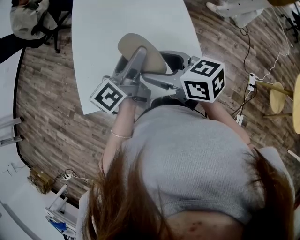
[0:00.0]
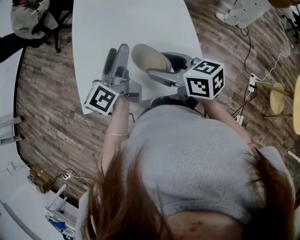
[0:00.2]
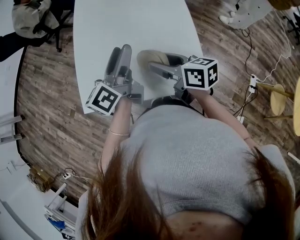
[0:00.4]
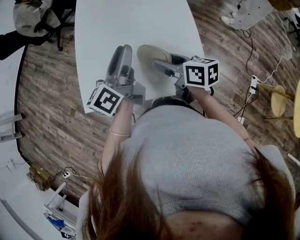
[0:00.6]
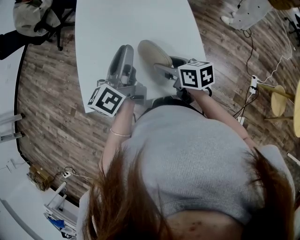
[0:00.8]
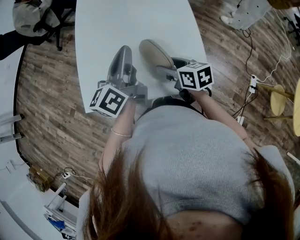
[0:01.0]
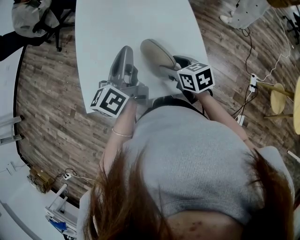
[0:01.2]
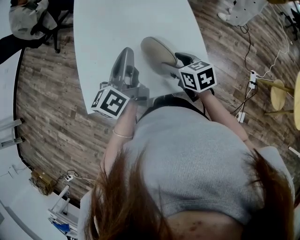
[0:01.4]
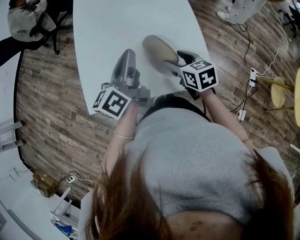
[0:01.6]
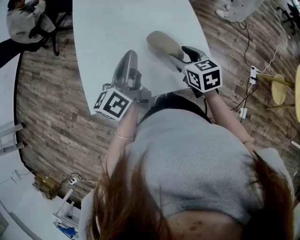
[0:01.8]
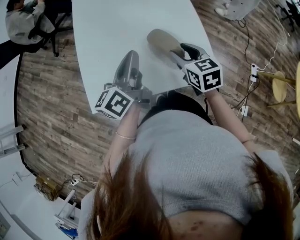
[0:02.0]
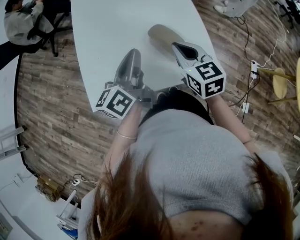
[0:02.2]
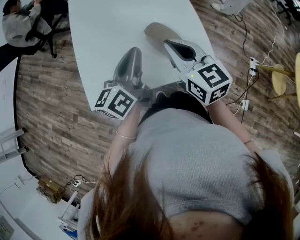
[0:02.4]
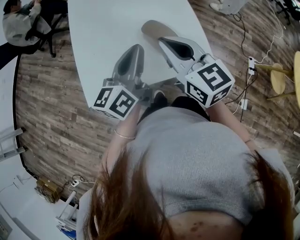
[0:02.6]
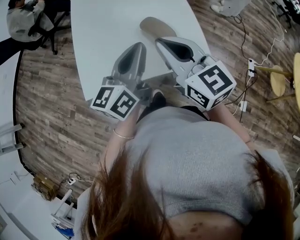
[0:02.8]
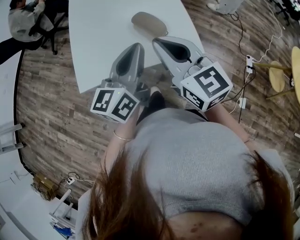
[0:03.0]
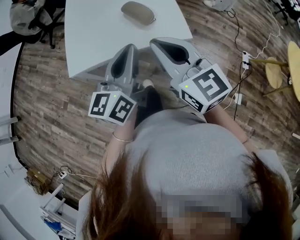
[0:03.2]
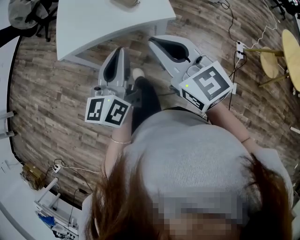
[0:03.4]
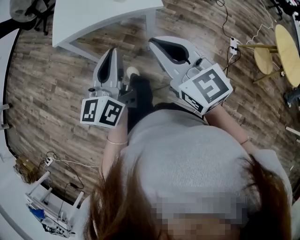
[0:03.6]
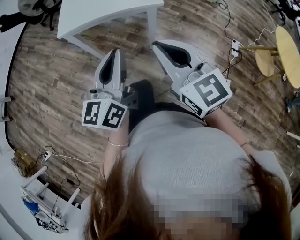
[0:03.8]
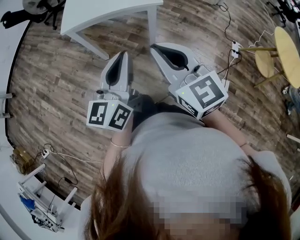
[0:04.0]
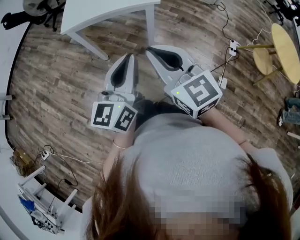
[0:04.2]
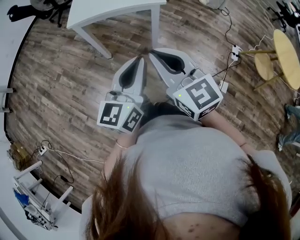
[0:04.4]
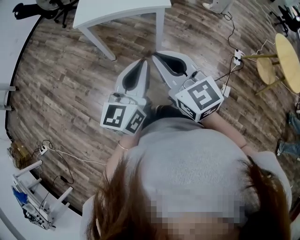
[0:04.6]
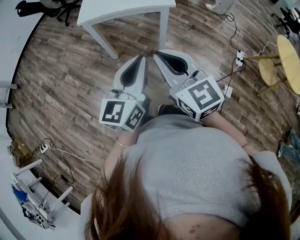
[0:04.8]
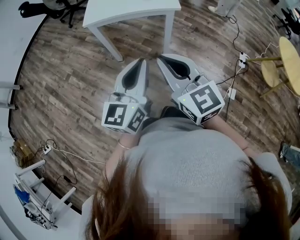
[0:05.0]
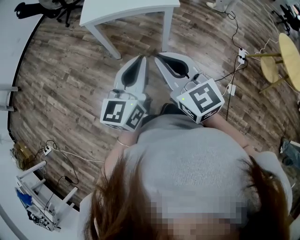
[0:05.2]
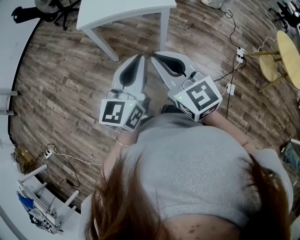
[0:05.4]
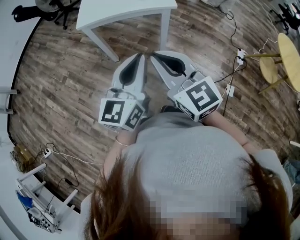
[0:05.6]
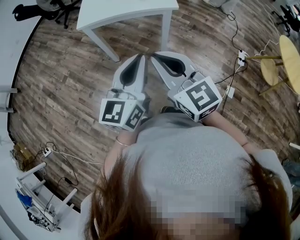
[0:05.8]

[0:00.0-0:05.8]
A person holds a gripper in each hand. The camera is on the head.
0:00.0 to 0:01.4: The left gripper closes, while the right gripper travels downward by approximately 15 cm, and swivels roughly 30 degrees.
0:01.4 to 0:02.8: The right gripper goes approximately 20 cm upward, points its fingers roughly 30 degrees further upward, and closes its fingers. Meanwhile the left gripper heads backward, covering approximately 10 cm.
0:02.8 to 0:04.4: Both grippers are carried backward, approximately 40 cm.
0:04.4 to 0:05.8: The right gripper shifts by about 5 cm; the left gripper ends up approximately 5 cm from where it was.

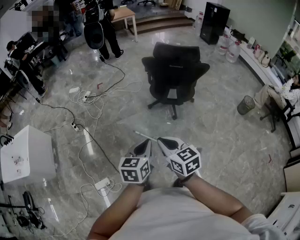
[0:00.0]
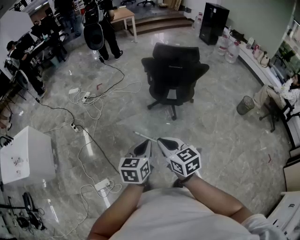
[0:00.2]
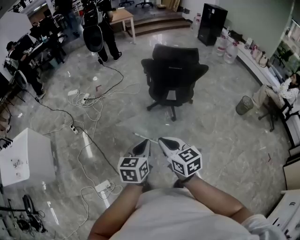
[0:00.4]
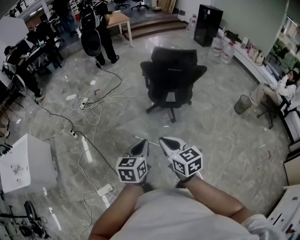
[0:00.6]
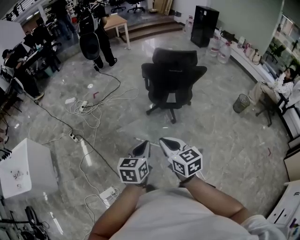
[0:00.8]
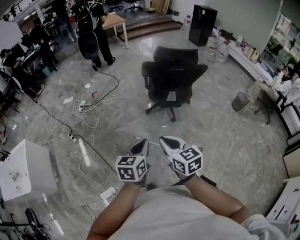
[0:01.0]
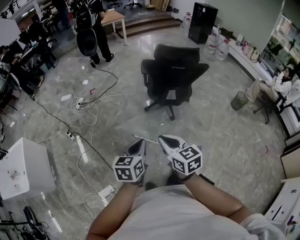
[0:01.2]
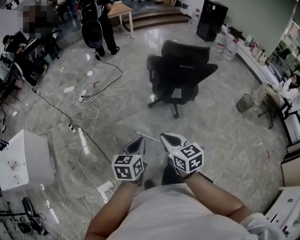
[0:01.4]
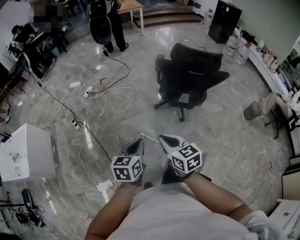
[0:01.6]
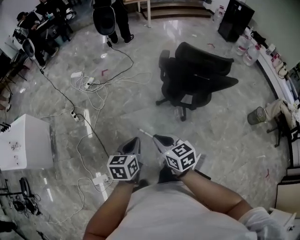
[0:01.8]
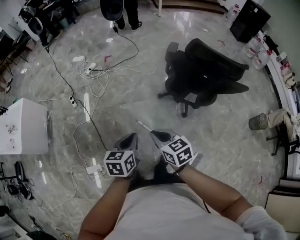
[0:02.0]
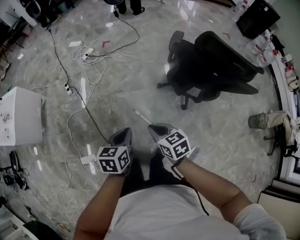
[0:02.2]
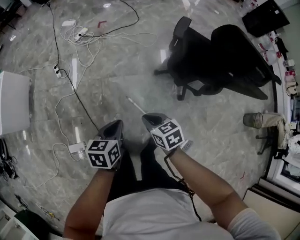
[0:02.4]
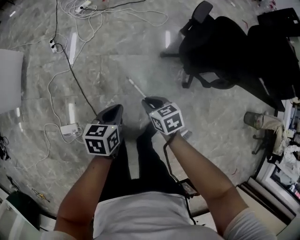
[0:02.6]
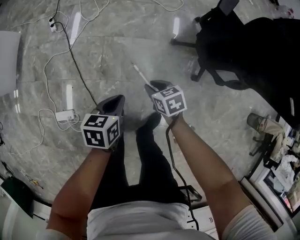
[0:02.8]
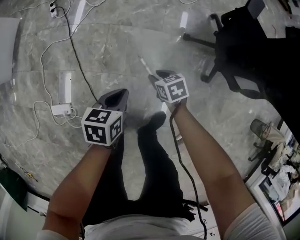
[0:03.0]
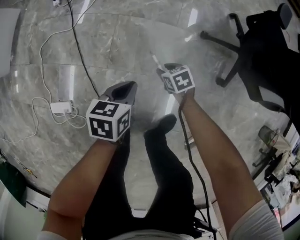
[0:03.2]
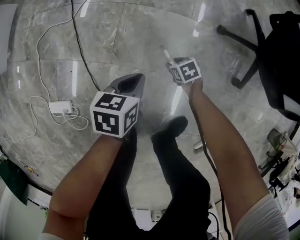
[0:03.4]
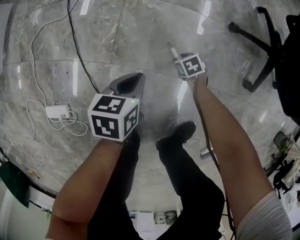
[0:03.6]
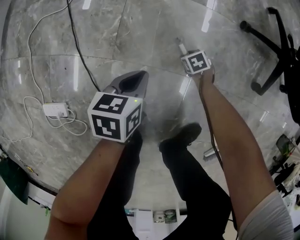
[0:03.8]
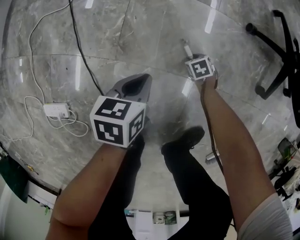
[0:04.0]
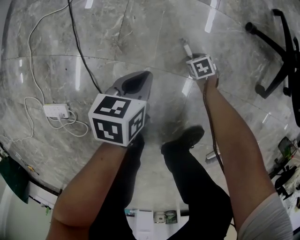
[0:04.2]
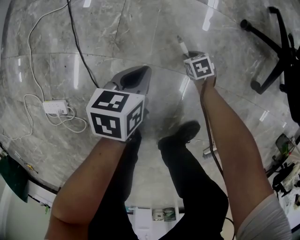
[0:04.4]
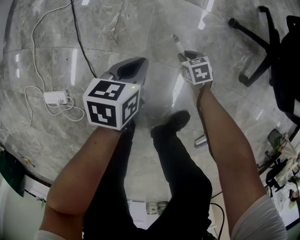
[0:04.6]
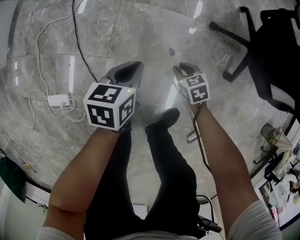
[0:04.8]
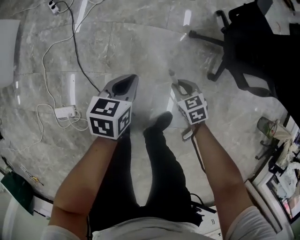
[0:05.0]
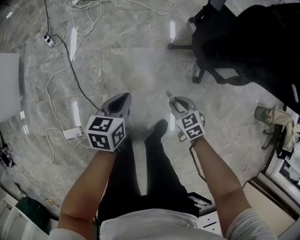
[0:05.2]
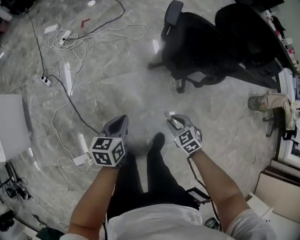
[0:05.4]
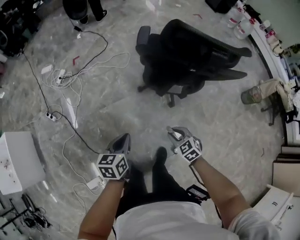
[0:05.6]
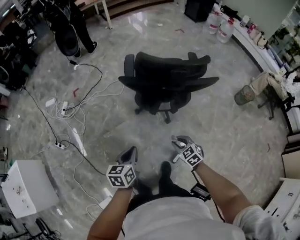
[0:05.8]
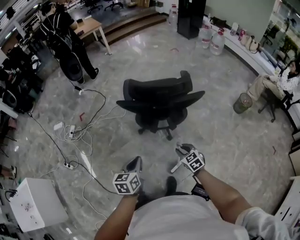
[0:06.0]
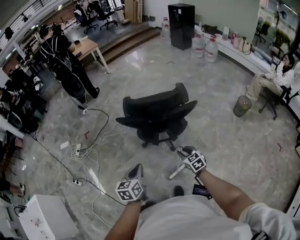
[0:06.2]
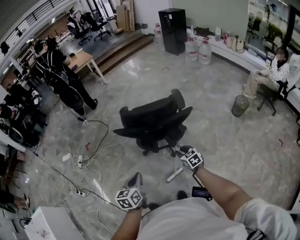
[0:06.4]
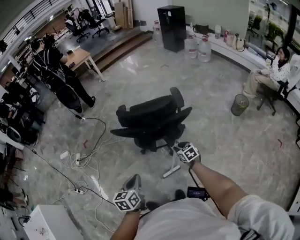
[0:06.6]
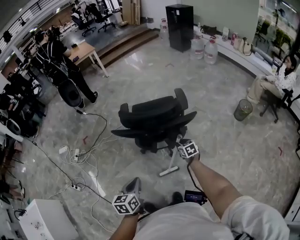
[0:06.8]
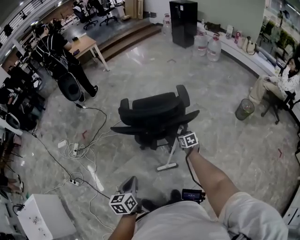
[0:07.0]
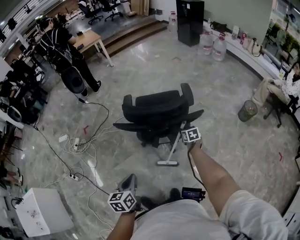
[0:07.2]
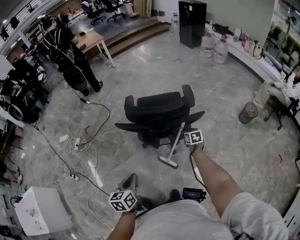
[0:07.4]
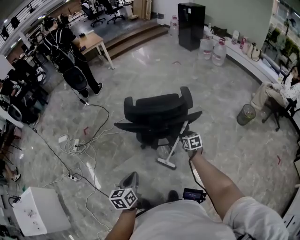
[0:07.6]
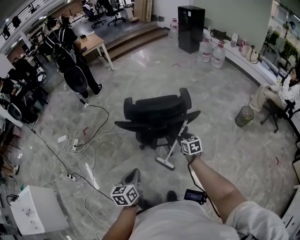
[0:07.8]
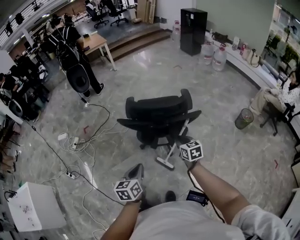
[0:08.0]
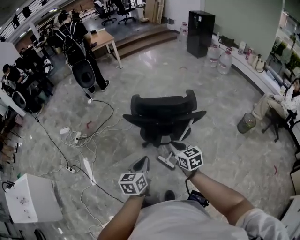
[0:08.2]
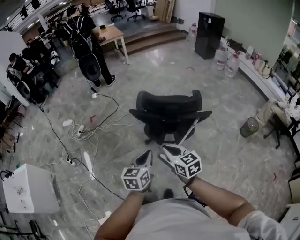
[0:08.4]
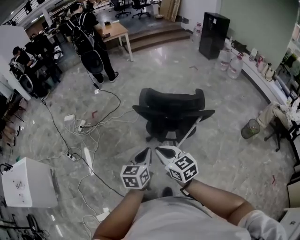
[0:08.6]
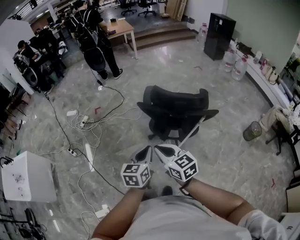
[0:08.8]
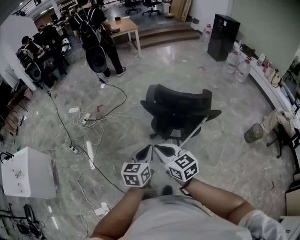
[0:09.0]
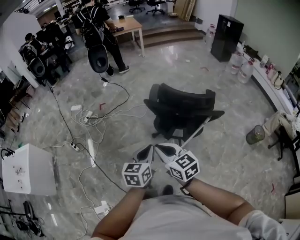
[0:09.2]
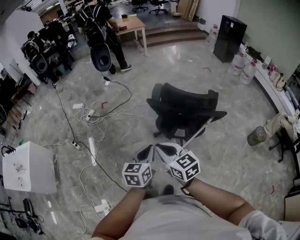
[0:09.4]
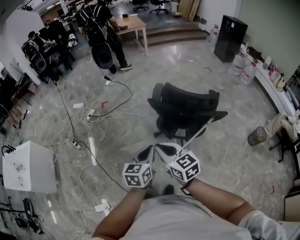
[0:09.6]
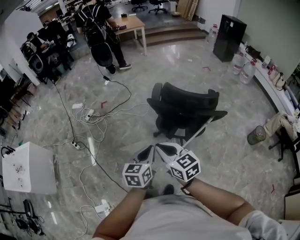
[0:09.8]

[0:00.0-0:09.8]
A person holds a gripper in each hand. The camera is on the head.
0:00.0 to 0:01.4: The two grippers go some 10 cm to the left and forward.
0:01.4 to 0:02.8: Both grippers move downward, some 50 cm. The left gripper changes its angle by some 30 degrees, while the right gripper points its fingers roughly 30 degrees further downward, and opens its fingers.
0:02.8 to 0:04.2: The grippers both shift downward by roughly 50 cm. The right gripper swivels some 30 degrees.
0:04.2 to 0:05.6: Both grippers move upward, about 70 cm. The right gripper swivels about 30 degrees, while the left gripper changes its angle by approximately 30 degrees.
0:05.6 to 0:07.0: The left gripper is displaced to the right and upward by some 25 cm; the right gripper heads to the right and forward, covering about 35 cm, and rotates around the line of its fingers by roughly 40 degrees, clockwise from behind.
0:07.0 to 0:08.4: The right gripper shifts roughly 40 cm upward, to the left and backward, and turns by approximately 30 degrees; the left gripper moves upward, approximately 5 cm.
0:08.4 to 0:09.8: The left gripper shifts roughly 10 cm to the left. Meanwhile the right gripper is displaced to the left by some 10 cm.

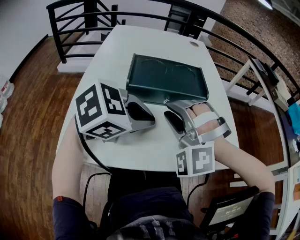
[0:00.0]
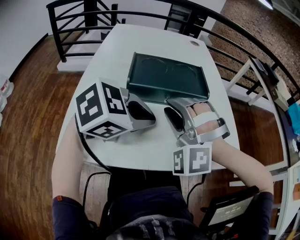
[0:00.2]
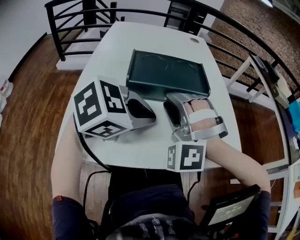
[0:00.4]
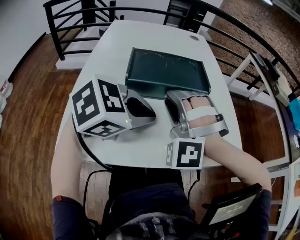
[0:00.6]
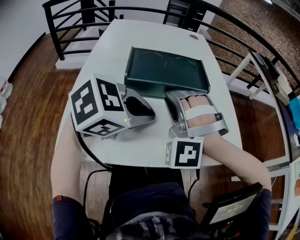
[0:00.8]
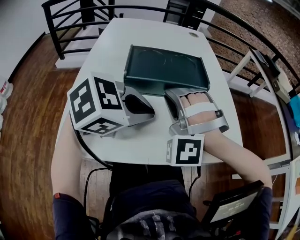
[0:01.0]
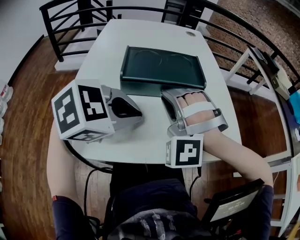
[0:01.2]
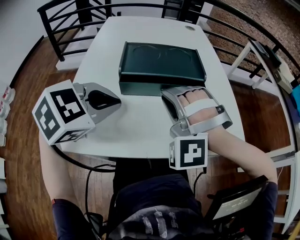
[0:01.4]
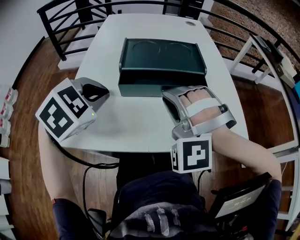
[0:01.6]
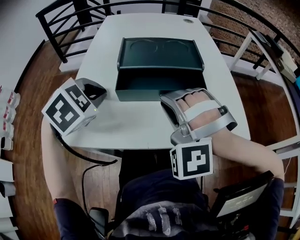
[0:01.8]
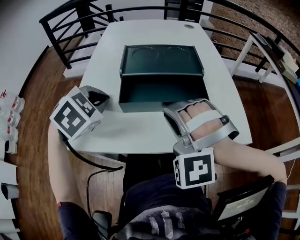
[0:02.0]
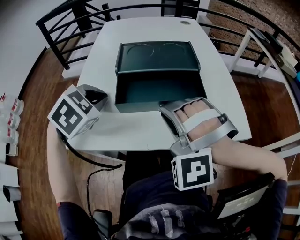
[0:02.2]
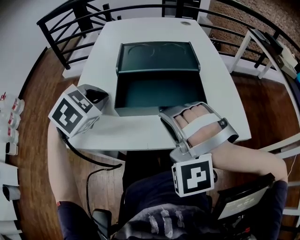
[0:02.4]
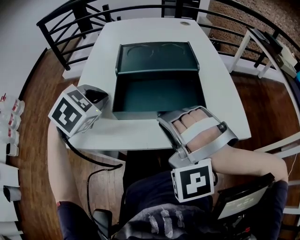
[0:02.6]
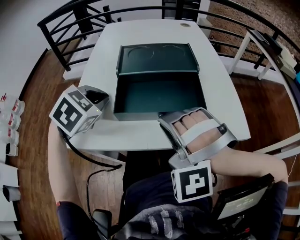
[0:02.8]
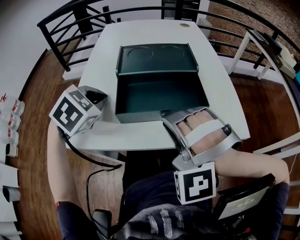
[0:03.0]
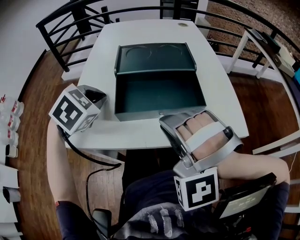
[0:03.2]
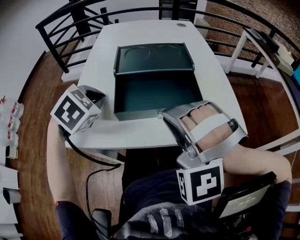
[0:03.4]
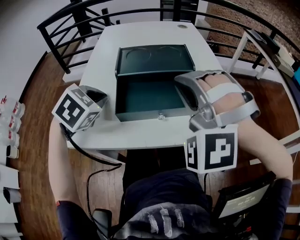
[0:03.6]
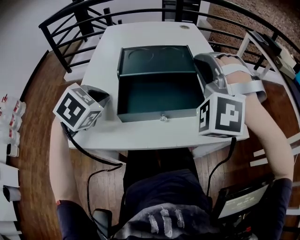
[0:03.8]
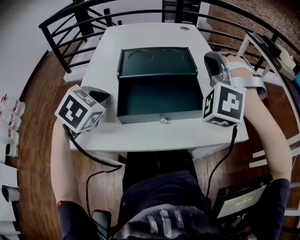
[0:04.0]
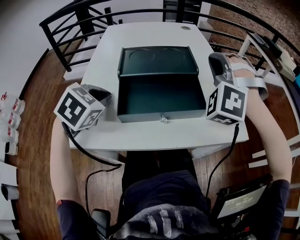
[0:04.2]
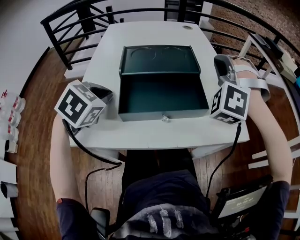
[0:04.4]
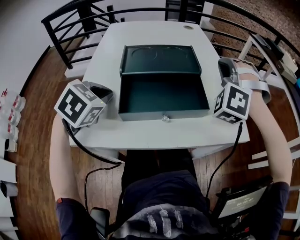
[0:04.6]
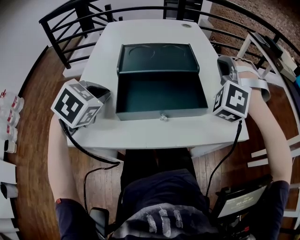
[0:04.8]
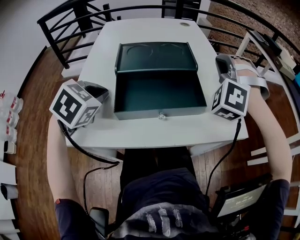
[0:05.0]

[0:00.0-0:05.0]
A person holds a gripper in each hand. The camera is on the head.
0:00.0 to 0:01.6: The left gripper shifts by about 10 cm, and changes its angle by some 40 degrees.

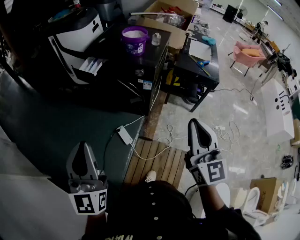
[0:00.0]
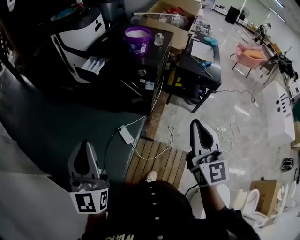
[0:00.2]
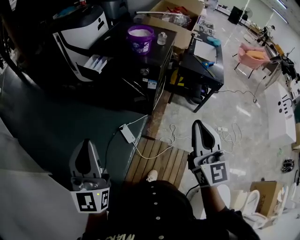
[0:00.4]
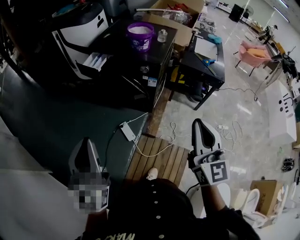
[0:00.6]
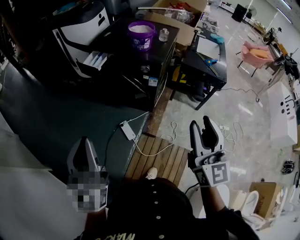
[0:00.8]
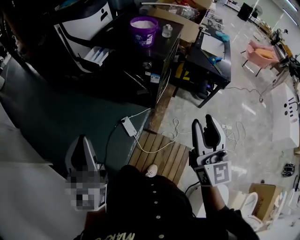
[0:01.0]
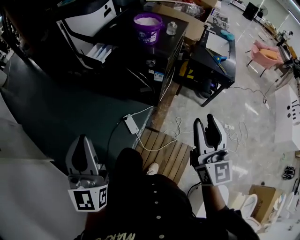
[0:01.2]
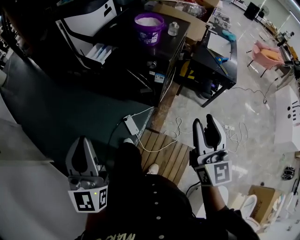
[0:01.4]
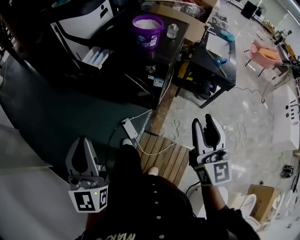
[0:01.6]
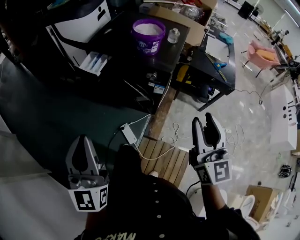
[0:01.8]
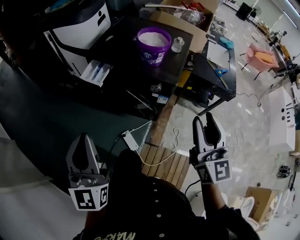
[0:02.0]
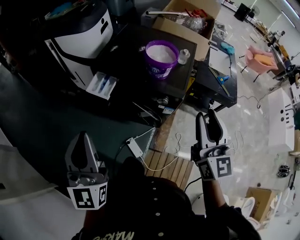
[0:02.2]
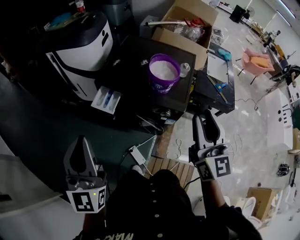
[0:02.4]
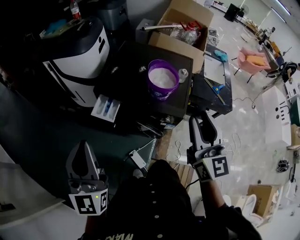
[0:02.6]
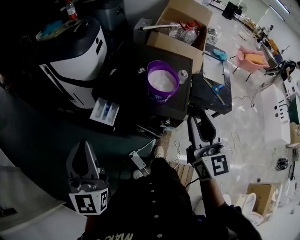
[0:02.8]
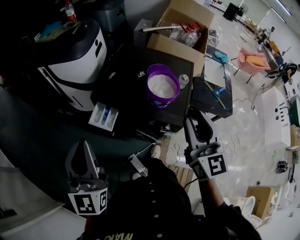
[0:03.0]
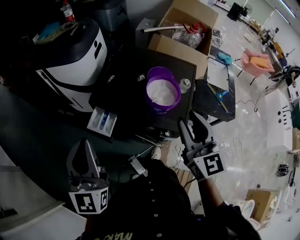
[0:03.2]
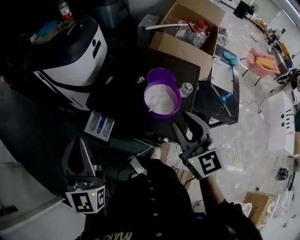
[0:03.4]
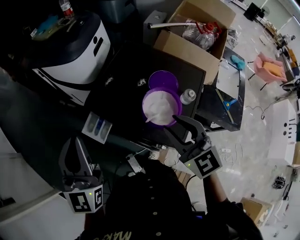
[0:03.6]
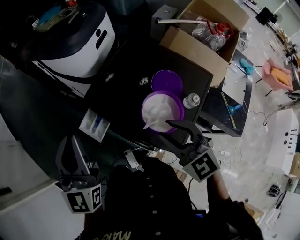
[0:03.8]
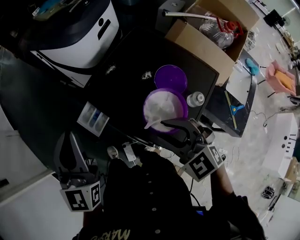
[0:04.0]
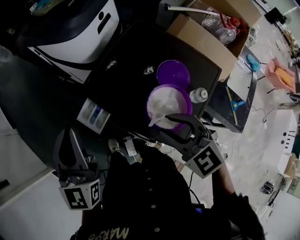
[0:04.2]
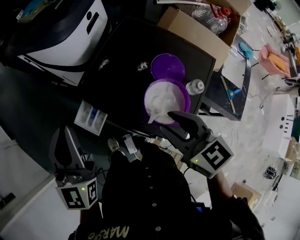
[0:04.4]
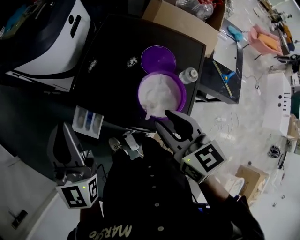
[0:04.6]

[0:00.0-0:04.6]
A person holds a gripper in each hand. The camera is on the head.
0:00.0 to 0:01.6: The two grippers go approximately 10 cm forward. The right gripper opens its fingers.
0:01.6 to 0:03.0: The left gripper travels forward by approximately 30 cm, while the right gripper moves forward and to the left, roughly 35 cm.
0:03.0 to 0:04.6: The right gripper shifts by about 20 cm, and swivels about 40 degrees. The left gripper changes place by about 20 cm.
